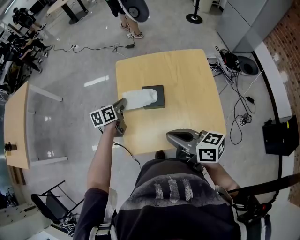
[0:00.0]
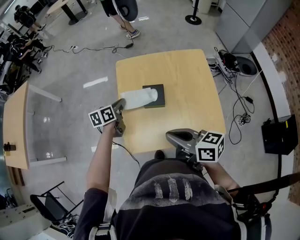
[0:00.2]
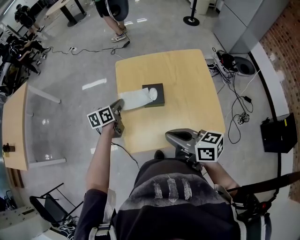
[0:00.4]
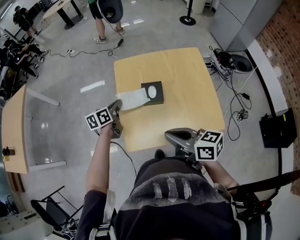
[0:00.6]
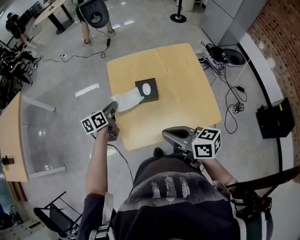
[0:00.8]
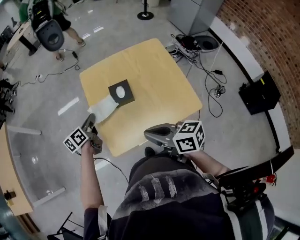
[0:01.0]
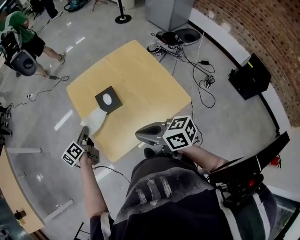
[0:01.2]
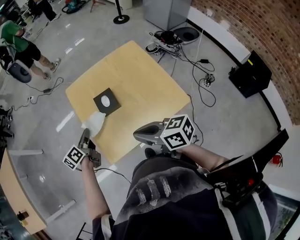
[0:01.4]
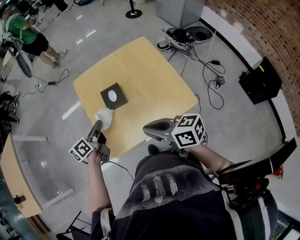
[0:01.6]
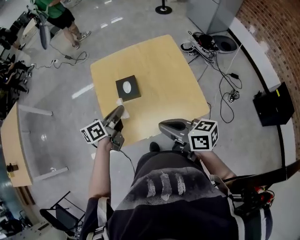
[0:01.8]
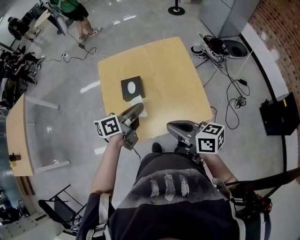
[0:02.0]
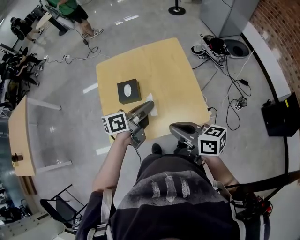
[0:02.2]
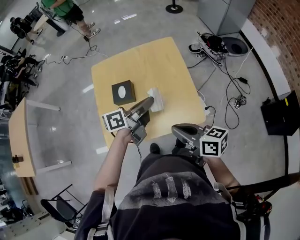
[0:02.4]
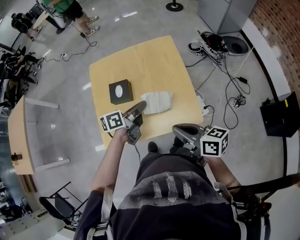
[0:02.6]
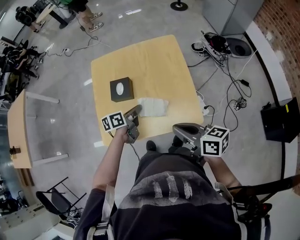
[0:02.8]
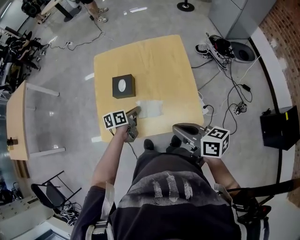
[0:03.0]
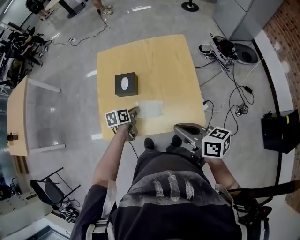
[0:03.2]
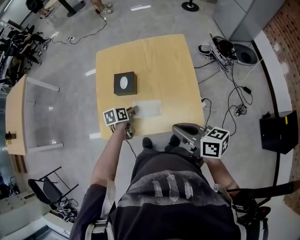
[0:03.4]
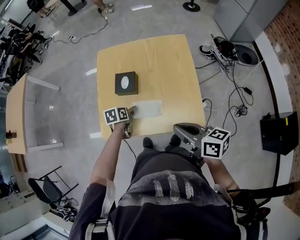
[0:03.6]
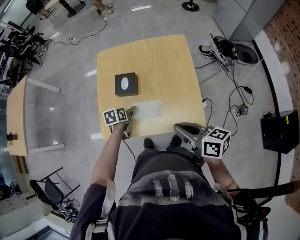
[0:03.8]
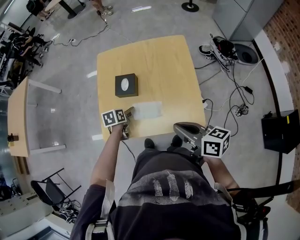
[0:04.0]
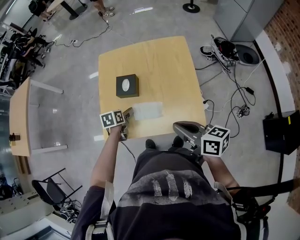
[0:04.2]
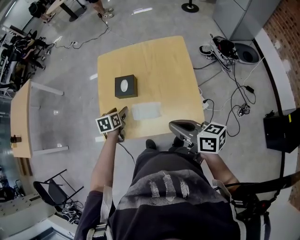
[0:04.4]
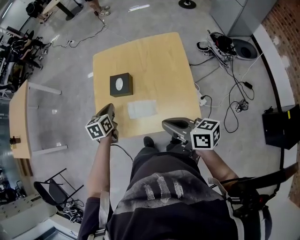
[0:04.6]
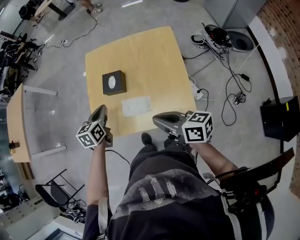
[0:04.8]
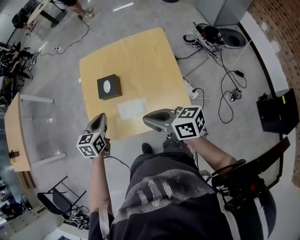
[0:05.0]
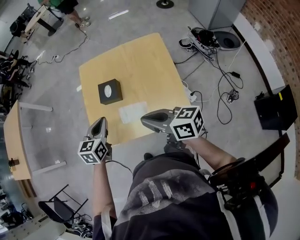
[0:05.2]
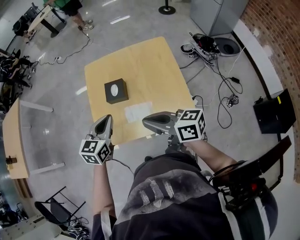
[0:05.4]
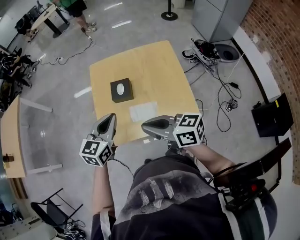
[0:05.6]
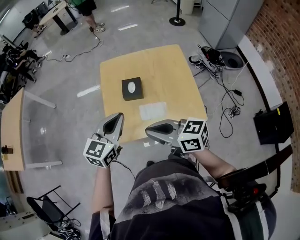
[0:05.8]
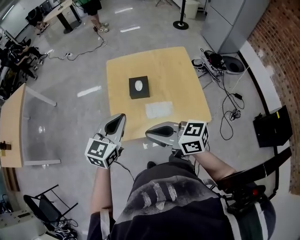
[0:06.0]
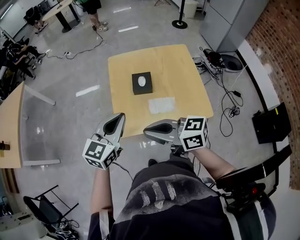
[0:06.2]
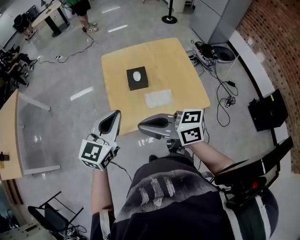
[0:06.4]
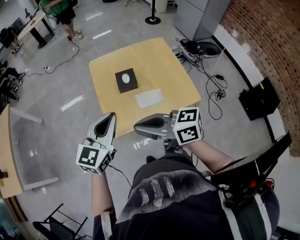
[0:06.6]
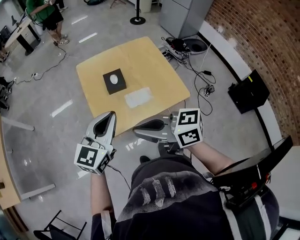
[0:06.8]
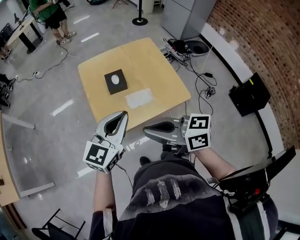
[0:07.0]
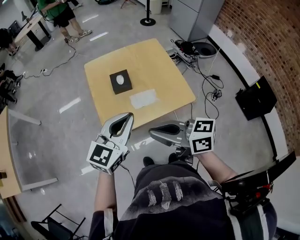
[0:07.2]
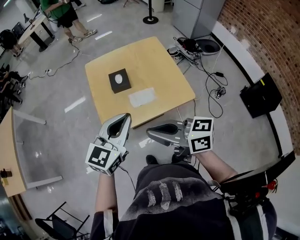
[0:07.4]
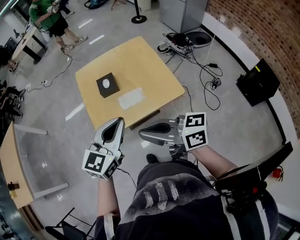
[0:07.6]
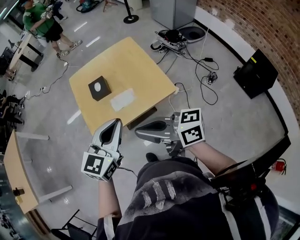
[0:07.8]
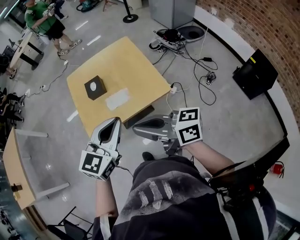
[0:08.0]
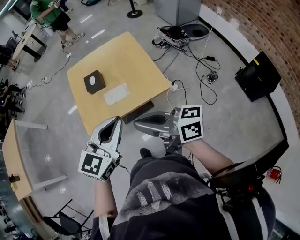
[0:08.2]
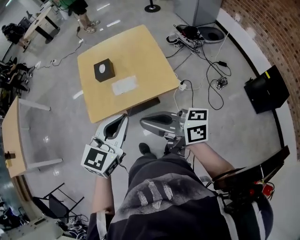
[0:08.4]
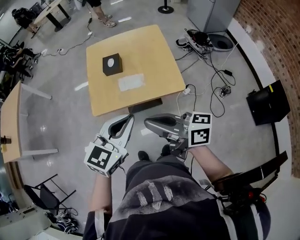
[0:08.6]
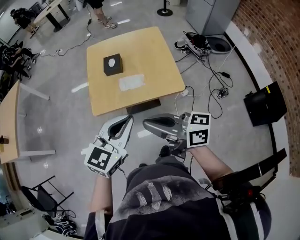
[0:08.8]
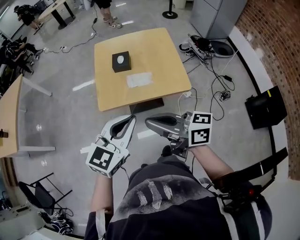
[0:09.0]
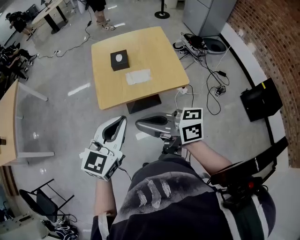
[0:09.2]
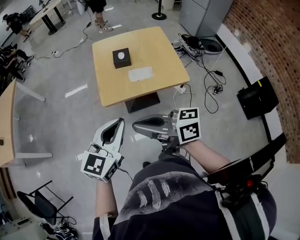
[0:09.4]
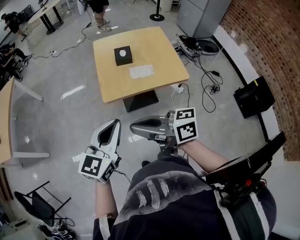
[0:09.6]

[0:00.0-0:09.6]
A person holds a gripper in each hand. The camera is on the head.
0.0 to 1.6 s: The left gripper travels backward by approximately 10 cm, while the right gripper shifts roughly 5 cm backward.
1.6 to 3.2 s: The left gripper shifts some 20 cm to the right and downward, and swivels roughly 20 degrees; the right gripper heads to the right, covering approximately 15 cm.
3.2 to 4.8 s: The left gripper goes roughly 15 cm upward and to the left, swivels about 30 degrees, and opens, then closes once more.
4.8 to 6.4 s: The left gripper moves upward, to the left and backward, some 20 cm, and turns by roughly 40 degrees. The right gripper moves to the left and upward, approximately 25 cm.
6.4 to 8.0 s: The grippers both shift to the right and backward by some 20 cm.
8.0 to 9.6 s: Both grippers move to the left and backward, approximately 25 cm.

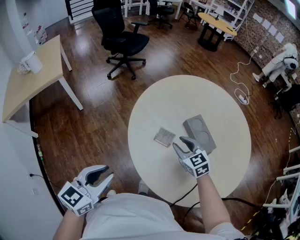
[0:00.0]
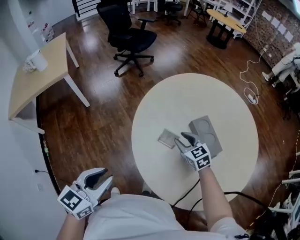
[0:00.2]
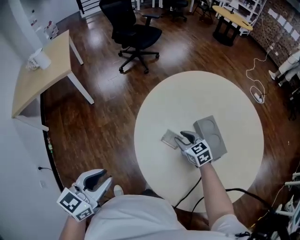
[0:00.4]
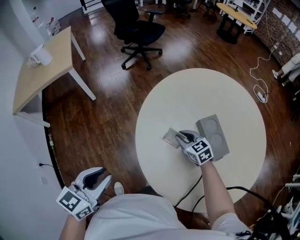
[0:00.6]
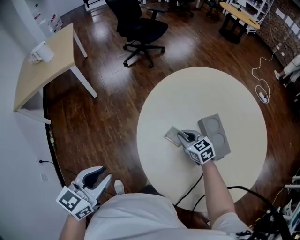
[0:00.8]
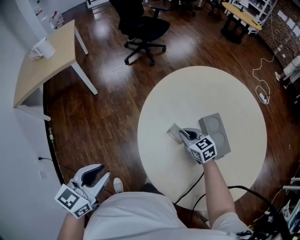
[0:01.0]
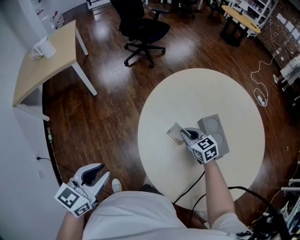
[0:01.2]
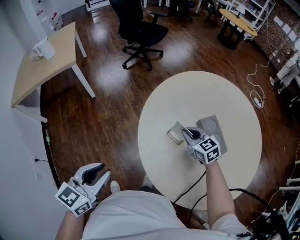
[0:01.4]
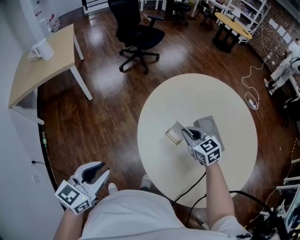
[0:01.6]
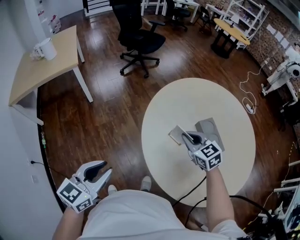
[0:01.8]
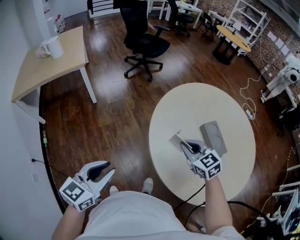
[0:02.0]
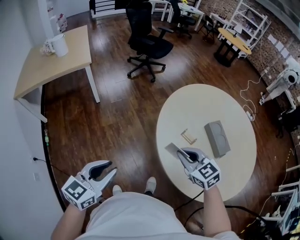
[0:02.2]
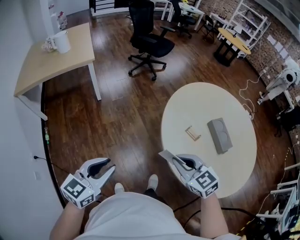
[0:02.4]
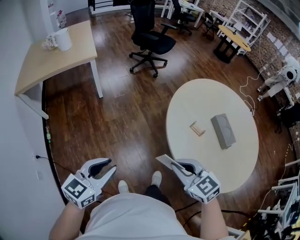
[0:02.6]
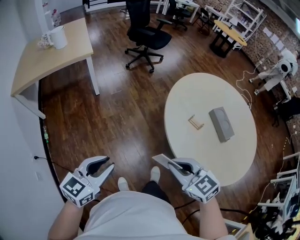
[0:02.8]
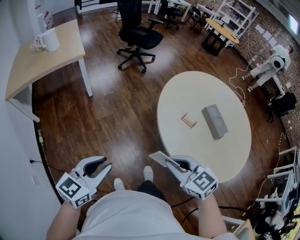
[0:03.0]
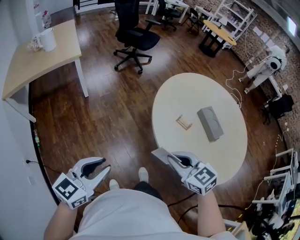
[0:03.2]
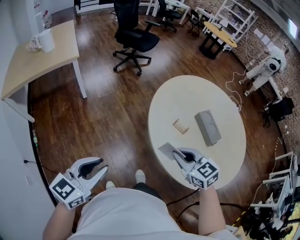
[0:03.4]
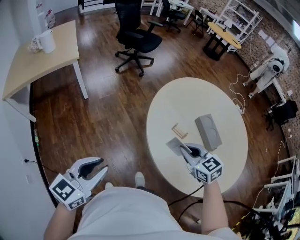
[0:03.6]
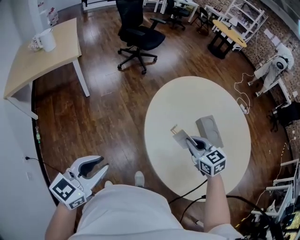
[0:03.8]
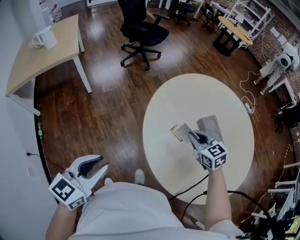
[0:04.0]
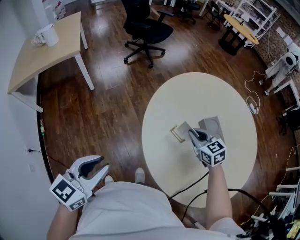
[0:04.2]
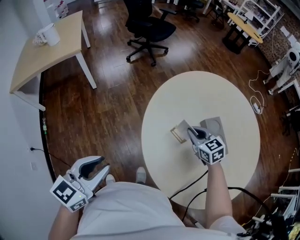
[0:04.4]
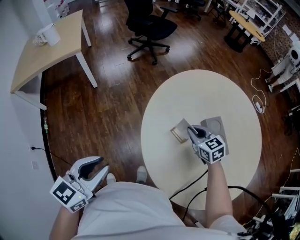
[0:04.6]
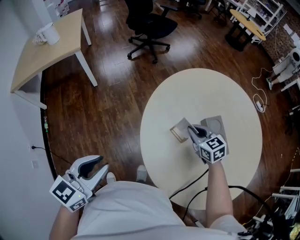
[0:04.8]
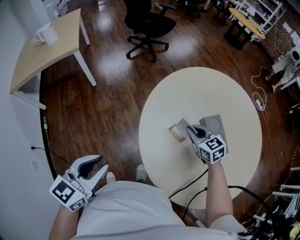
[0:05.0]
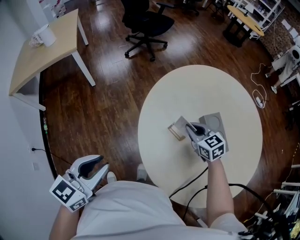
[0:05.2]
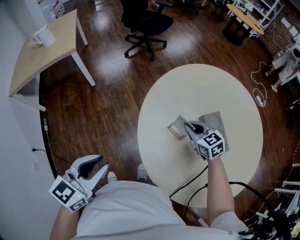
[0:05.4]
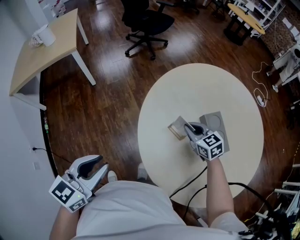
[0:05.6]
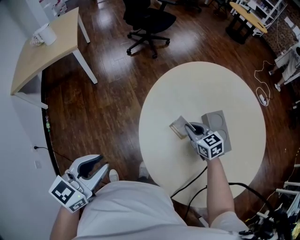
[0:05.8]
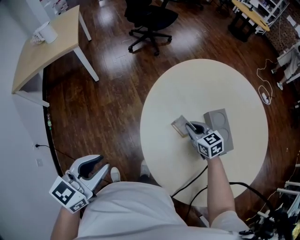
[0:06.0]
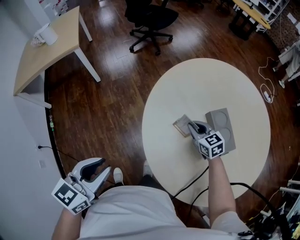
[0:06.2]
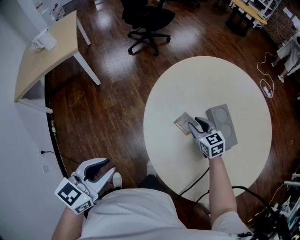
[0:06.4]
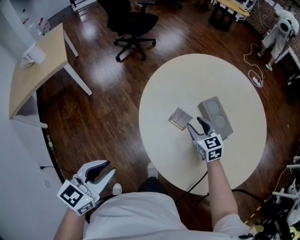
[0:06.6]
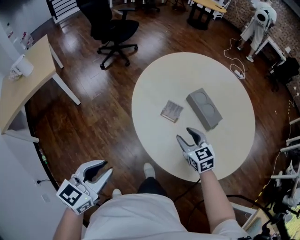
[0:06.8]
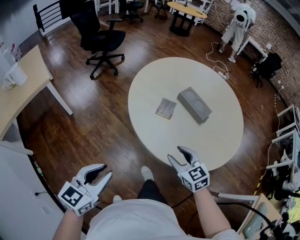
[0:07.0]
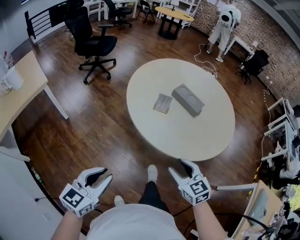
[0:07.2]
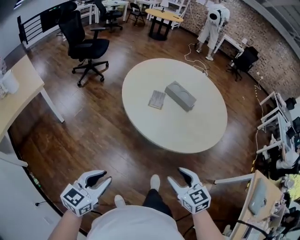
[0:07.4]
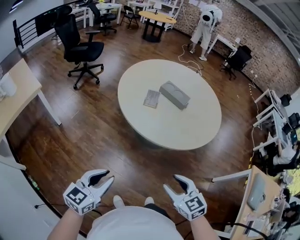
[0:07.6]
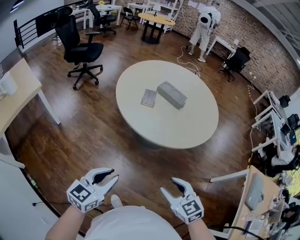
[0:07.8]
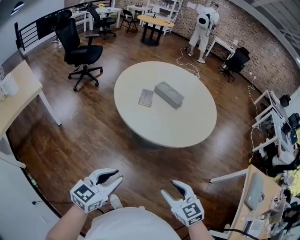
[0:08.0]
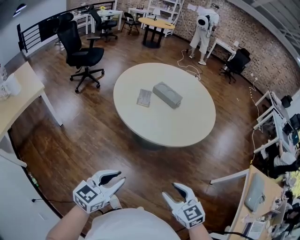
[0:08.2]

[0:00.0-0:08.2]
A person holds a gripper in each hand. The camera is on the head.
0.0 to 1.6 s: The right gripper shifts approximately 5 cm forward, moves some 10 cm downward and comes back, and closes its fingers.
1.6 to 3.2 s: The left gripper moves to the left and backward, approximately 15 cm. Meanwhile the right gripper moves backward and to the left, approximately 30 cm.
3.2 to 5.0 s: The right gripper is displaced forward, to the right and downward by about 35 cm, while the left gripper shifts roughly 20 cm to the right and forward.
5.0 to 6.6 s: The right gripper opens its fingers.
6.6 to 8.2 s: The left gripper shifts by approximately 30 cm, and rotates about 30 degrees, while the right gripper shifts by approximately 60 cm.

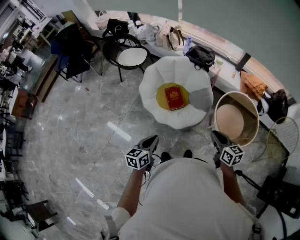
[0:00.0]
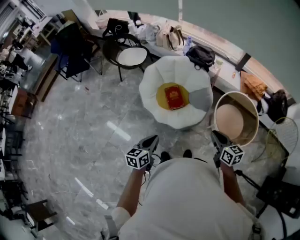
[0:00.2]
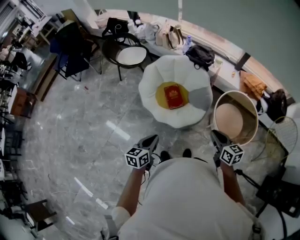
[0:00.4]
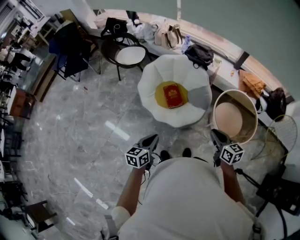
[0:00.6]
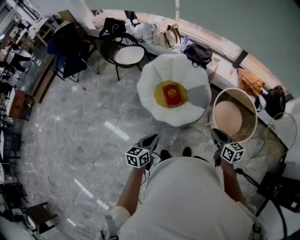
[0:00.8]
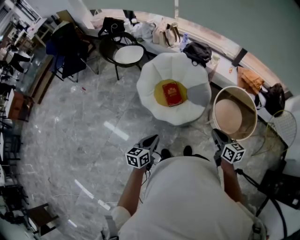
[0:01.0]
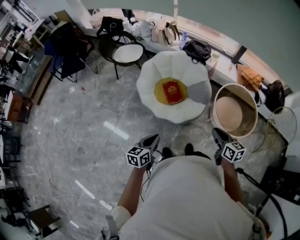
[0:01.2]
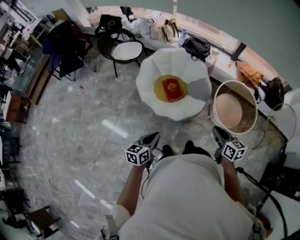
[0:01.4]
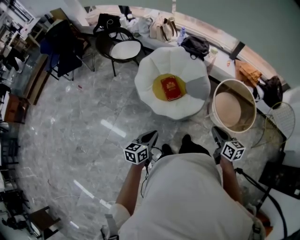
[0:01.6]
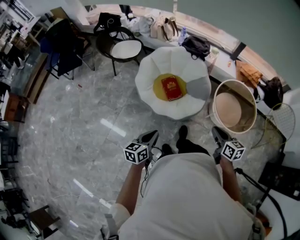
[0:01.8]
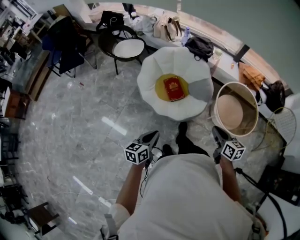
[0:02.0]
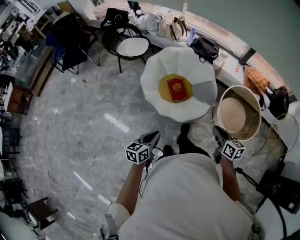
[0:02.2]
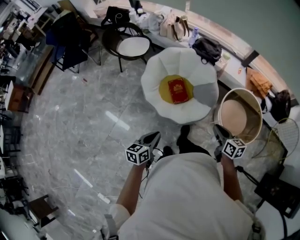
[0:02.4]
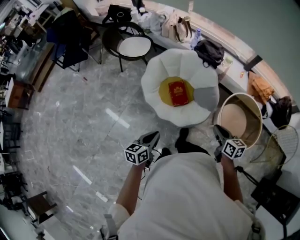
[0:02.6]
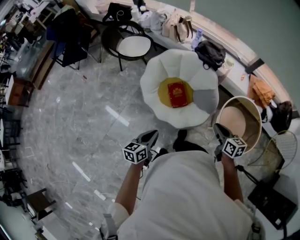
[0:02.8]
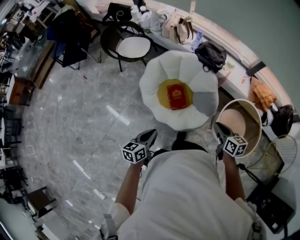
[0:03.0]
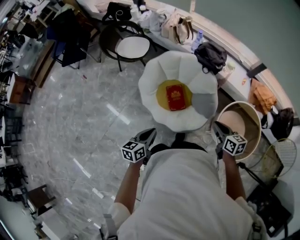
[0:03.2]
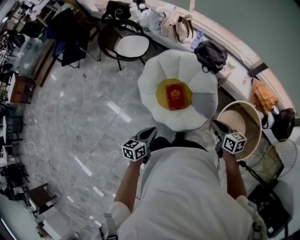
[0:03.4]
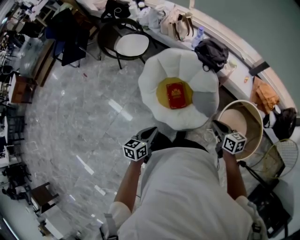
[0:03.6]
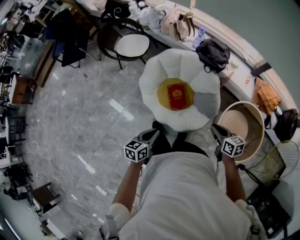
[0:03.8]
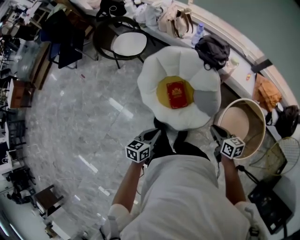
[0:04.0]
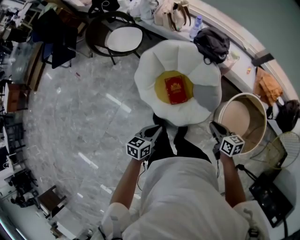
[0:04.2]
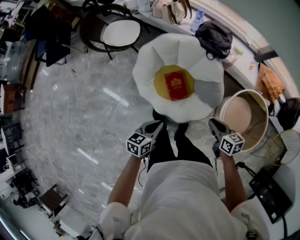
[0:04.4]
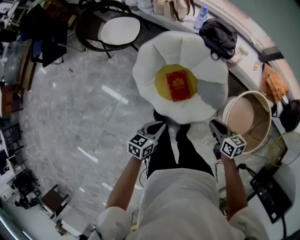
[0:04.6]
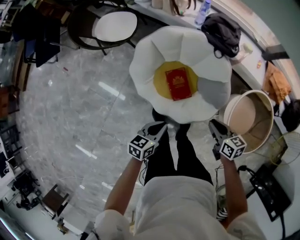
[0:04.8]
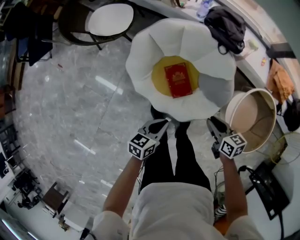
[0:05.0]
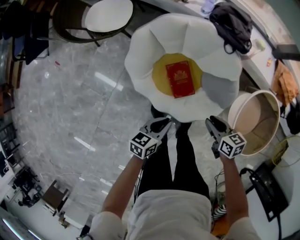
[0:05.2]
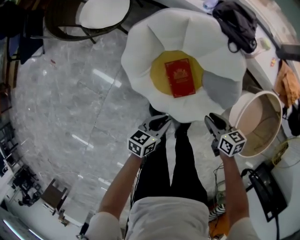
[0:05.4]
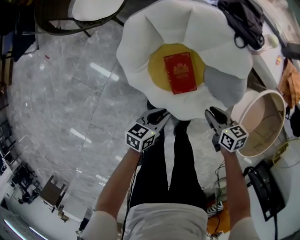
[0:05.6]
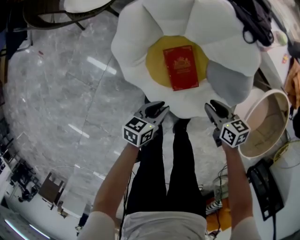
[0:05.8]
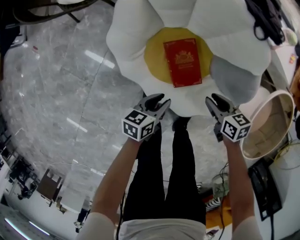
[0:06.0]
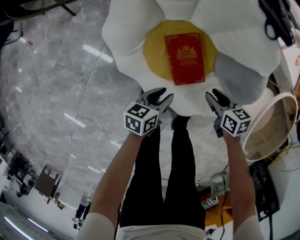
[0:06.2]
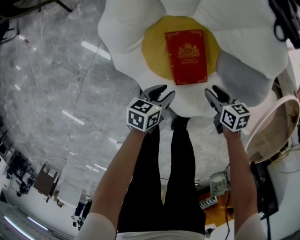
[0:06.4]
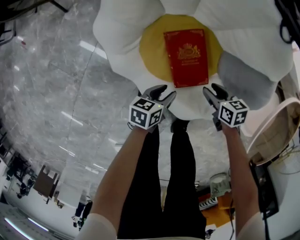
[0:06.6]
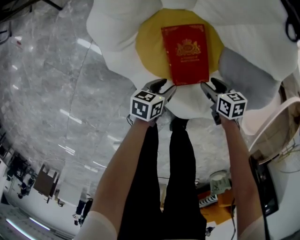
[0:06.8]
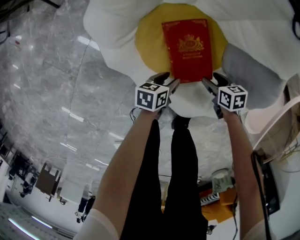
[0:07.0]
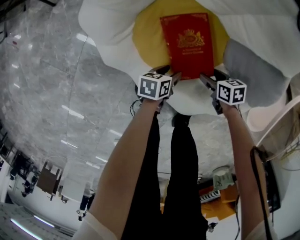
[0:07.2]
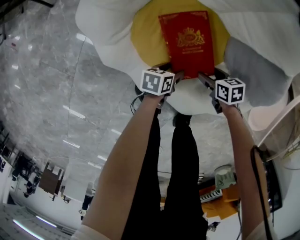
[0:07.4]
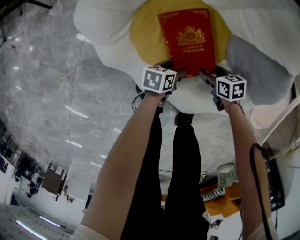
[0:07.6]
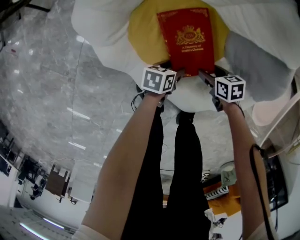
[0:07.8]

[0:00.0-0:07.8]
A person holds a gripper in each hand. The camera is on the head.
0.0 to 1.6 s: The left gripper shifts by roughly 5 cm. Meanwhile the right gripper goes about 5 cm backward.
1.6 to 3.2 s: Both grippers move forward, roughly 25 cm.
3.2 to 4.6 s: The left gripper heads forward and downward, covering approximately 15 cm; the right gripper shifts about 15 cm downward, to the left and forward.
4.6 to 6.2 s: Both grippers travel together downward, roughly 40 cm. The left gripper opens; the right gripper opens up.
6.2 to 7.8 s: The two grippers go about 25 cm downward. The right gripper opens up; the left gripper opens its fingers.
